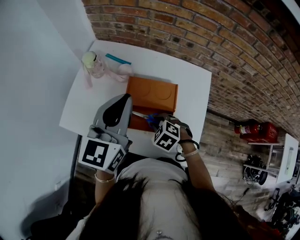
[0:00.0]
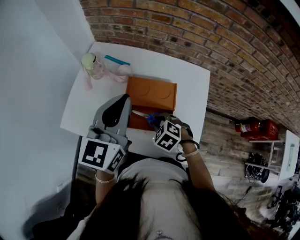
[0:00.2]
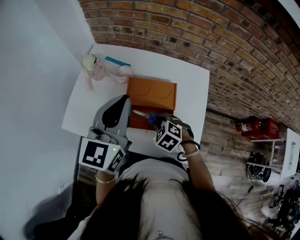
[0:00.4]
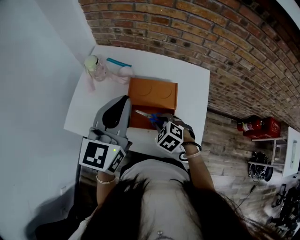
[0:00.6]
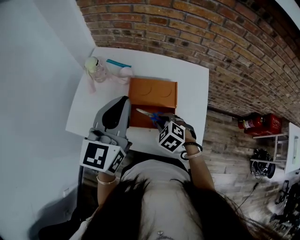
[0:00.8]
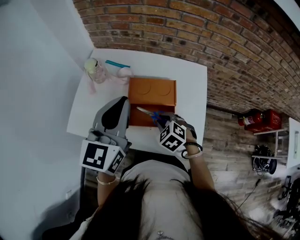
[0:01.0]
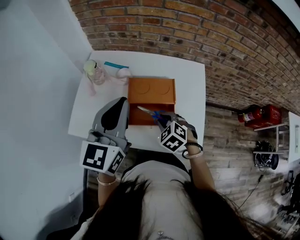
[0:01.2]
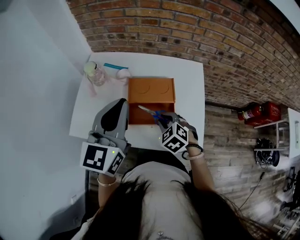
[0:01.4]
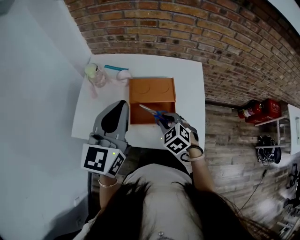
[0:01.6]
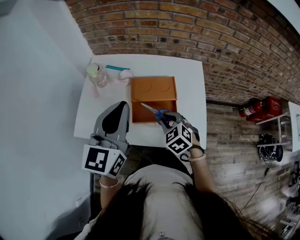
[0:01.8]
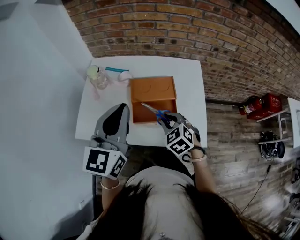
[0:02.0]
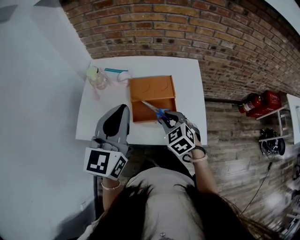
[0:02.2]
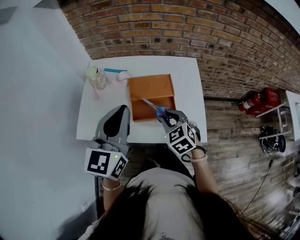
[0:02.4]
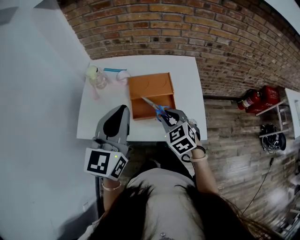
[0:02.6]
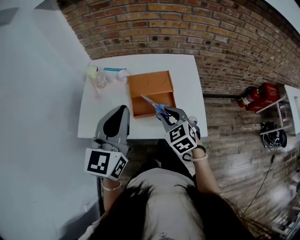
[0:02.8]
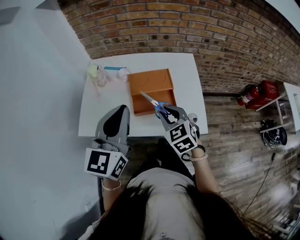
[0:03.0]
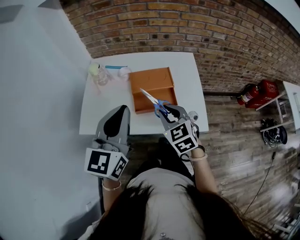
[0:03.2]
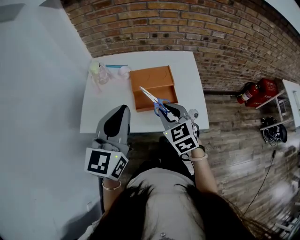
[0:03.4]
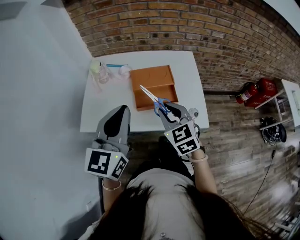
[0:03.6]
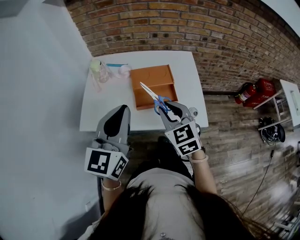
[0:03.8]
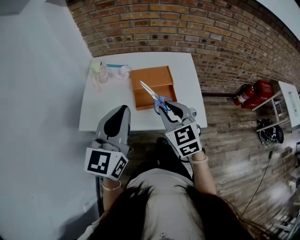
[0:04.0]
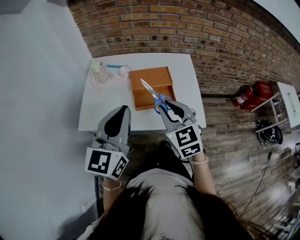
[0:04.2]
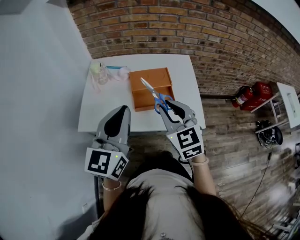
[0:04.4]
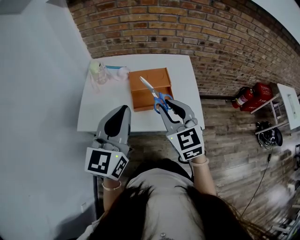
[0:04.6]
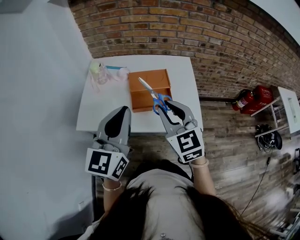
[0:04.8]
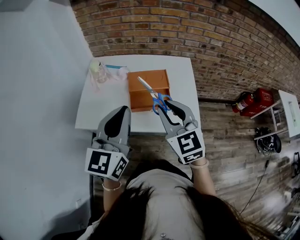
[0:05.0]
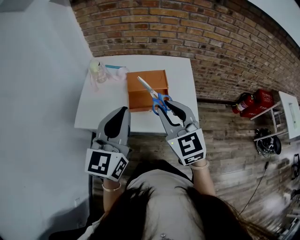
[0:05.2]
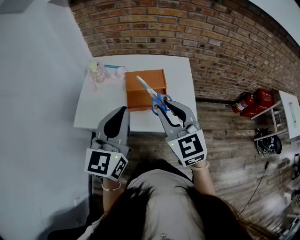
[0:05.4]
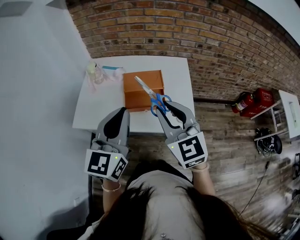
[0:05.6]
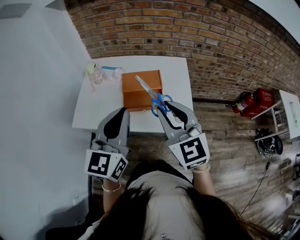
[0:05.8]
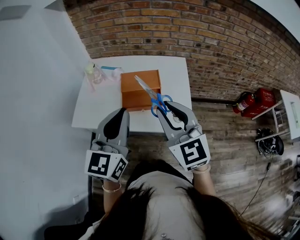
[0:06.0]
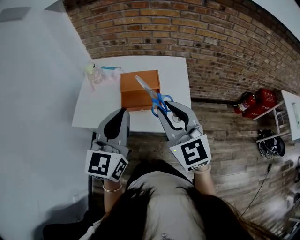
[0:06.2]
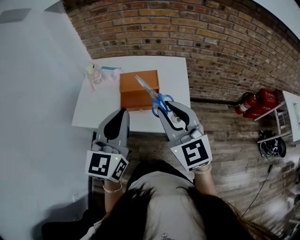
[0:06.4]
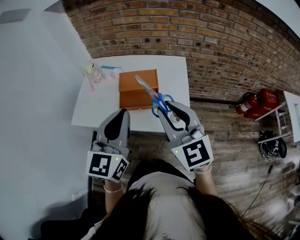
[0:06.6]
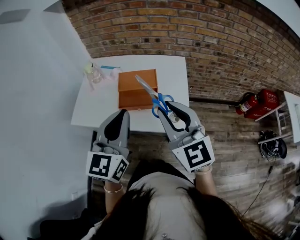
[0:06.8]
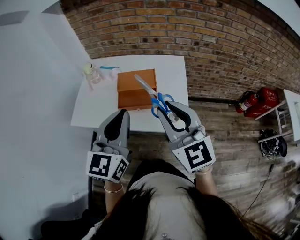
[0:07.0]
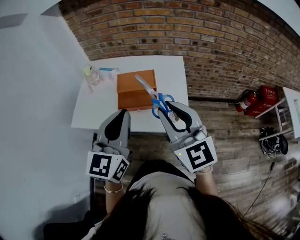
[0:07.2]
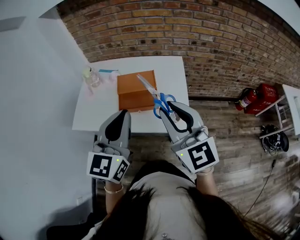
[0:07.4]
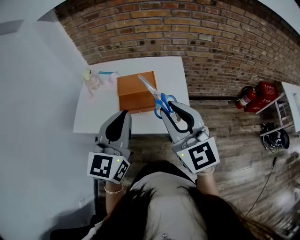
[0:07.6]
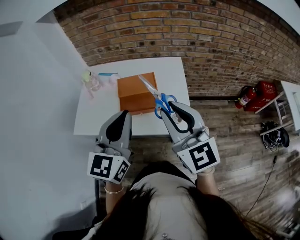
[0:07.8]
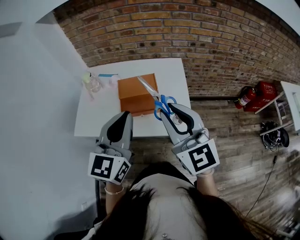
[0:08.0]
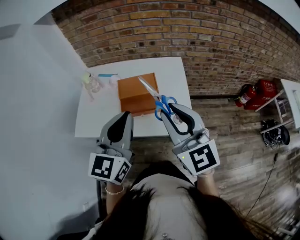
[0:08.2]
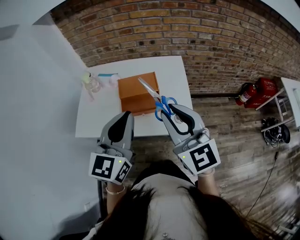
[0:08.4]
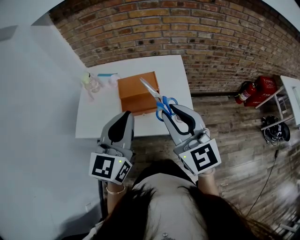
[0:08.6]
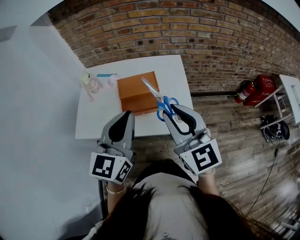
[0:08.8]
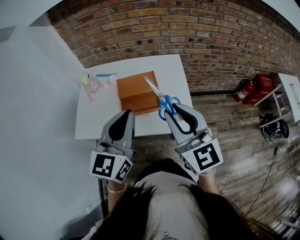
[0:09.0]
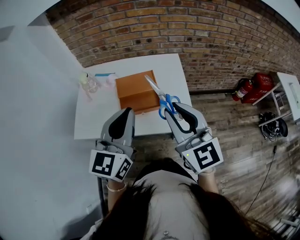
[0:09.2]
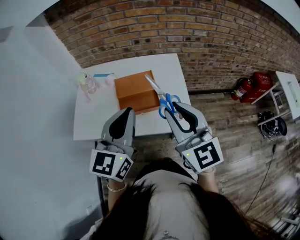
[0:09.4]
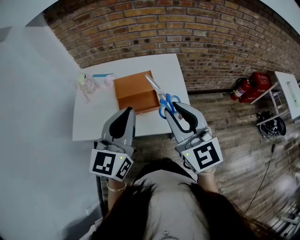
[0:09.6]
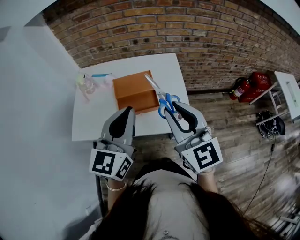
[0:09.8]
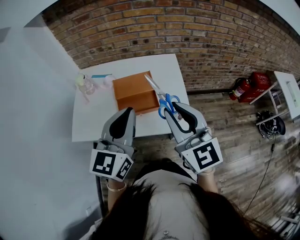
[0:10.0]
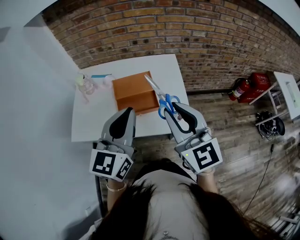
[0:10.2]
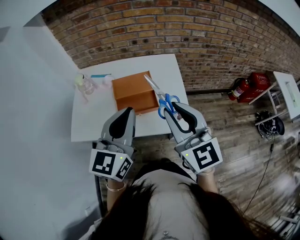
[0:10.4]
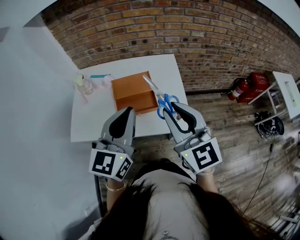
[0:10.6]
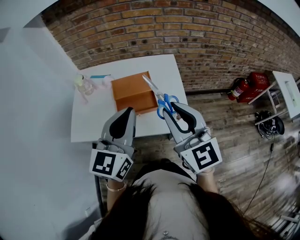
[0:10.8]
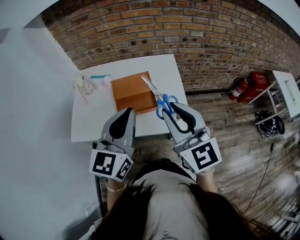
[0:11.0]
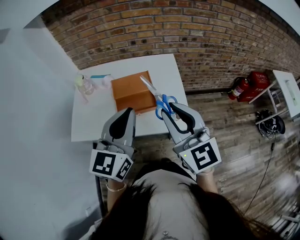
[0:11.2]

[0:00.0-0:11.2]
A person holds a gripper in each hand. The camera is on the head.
0:00.0 to 0:01.6: The right gripper shifts roughly 5 cm upward, and swivels some 20 degrees. The left gripper shifts some 5 cm backward.
0:01.6 to 0:03.2: The right gripper shifts some 10 cm upward and backward, and changes its angle by roughly 30 degrees. Meanwhile the left gripper heads backward, covering roughly 10 cm.
0:03.2 to 0:04.8: The right gripper shifts roughly 10 cm upward.
0:04.8 to 0:06.4: The right gripper heads to the right and upward, covering about 10 cm, while the left gripper goes roughly 10 cm to the right.
0:06.4 to 0:09.6: The grippers make only small movements.
0:09.6 to 0:11.2: The two grippers keep their place.

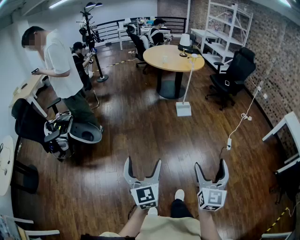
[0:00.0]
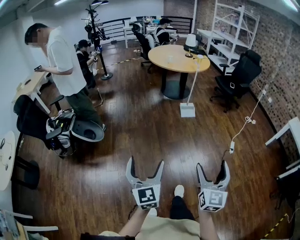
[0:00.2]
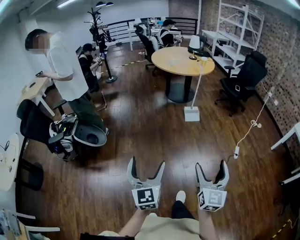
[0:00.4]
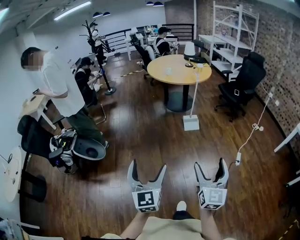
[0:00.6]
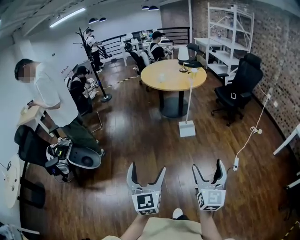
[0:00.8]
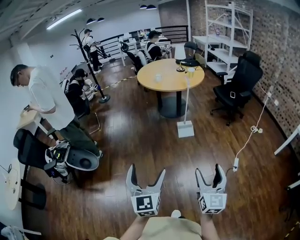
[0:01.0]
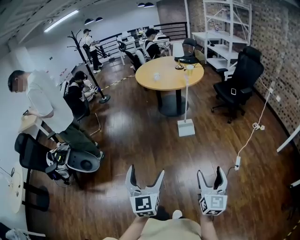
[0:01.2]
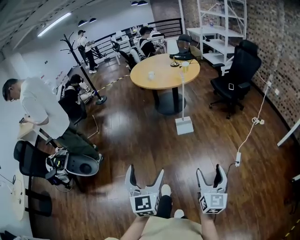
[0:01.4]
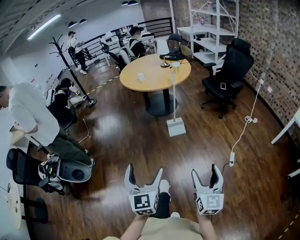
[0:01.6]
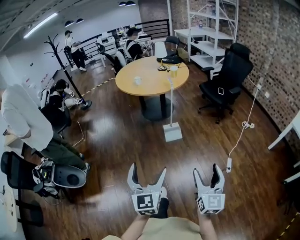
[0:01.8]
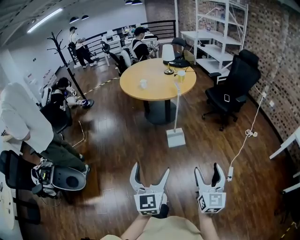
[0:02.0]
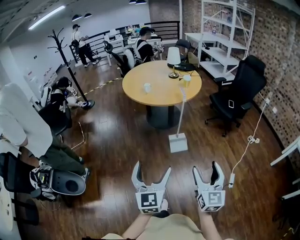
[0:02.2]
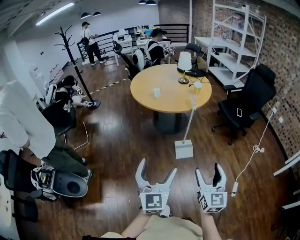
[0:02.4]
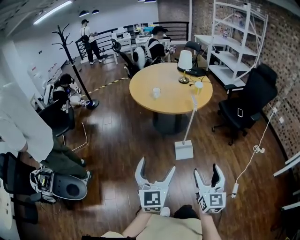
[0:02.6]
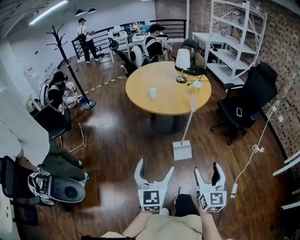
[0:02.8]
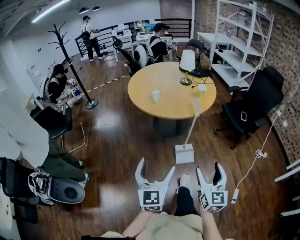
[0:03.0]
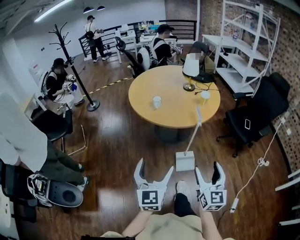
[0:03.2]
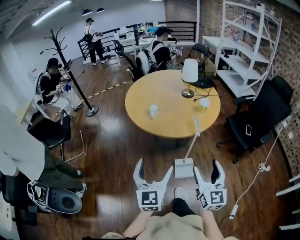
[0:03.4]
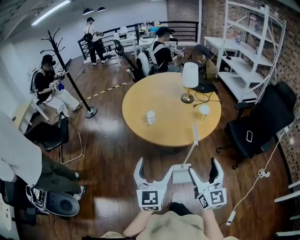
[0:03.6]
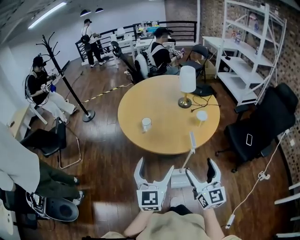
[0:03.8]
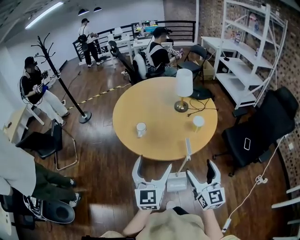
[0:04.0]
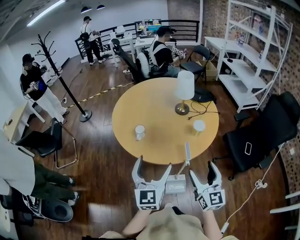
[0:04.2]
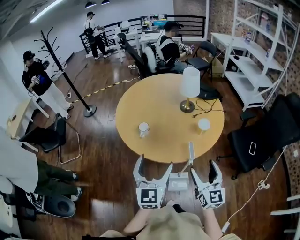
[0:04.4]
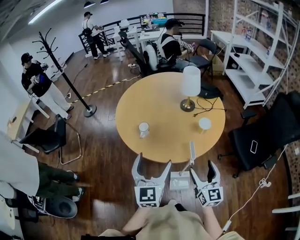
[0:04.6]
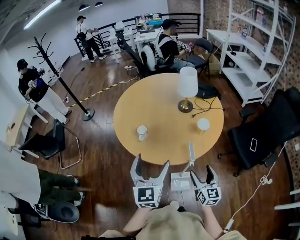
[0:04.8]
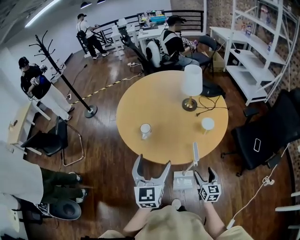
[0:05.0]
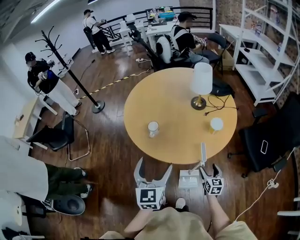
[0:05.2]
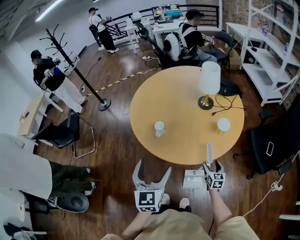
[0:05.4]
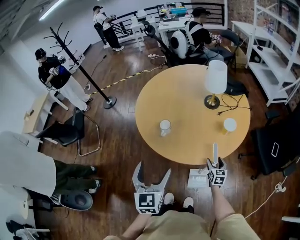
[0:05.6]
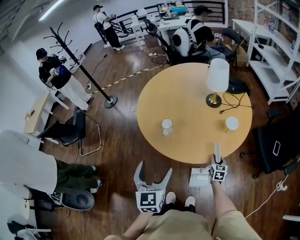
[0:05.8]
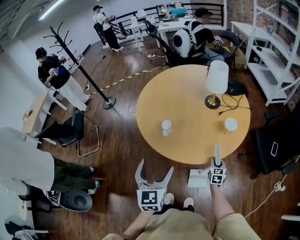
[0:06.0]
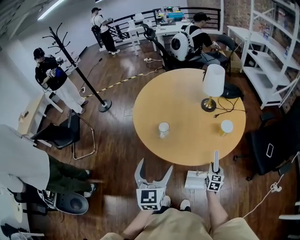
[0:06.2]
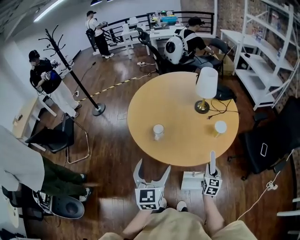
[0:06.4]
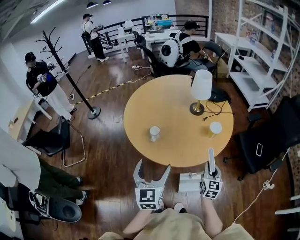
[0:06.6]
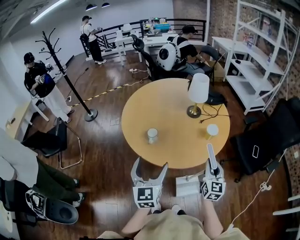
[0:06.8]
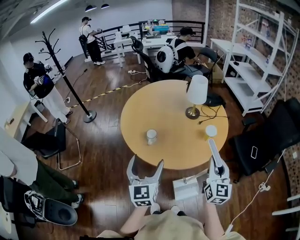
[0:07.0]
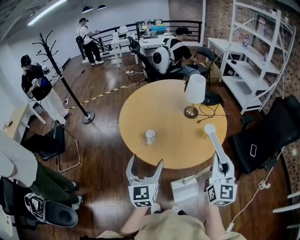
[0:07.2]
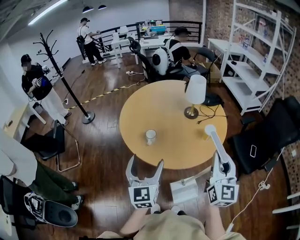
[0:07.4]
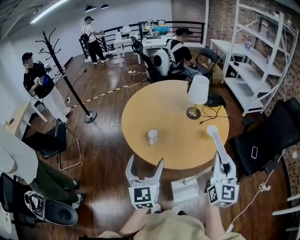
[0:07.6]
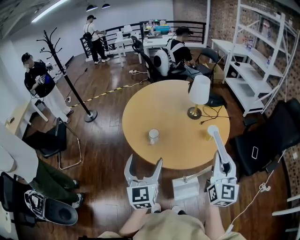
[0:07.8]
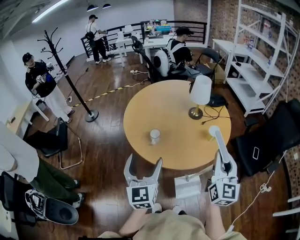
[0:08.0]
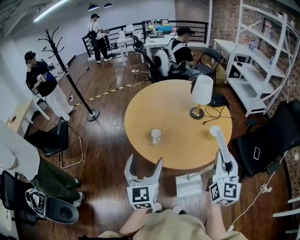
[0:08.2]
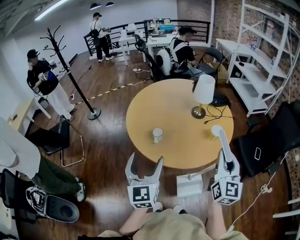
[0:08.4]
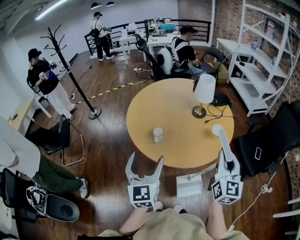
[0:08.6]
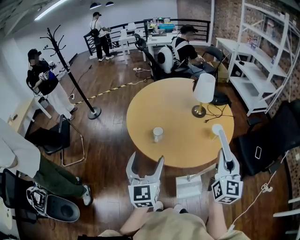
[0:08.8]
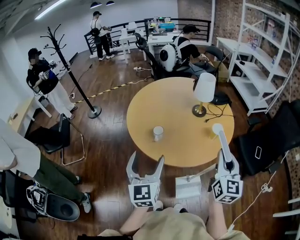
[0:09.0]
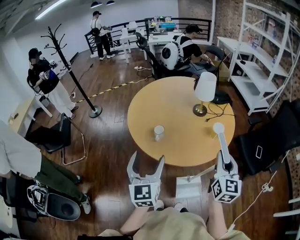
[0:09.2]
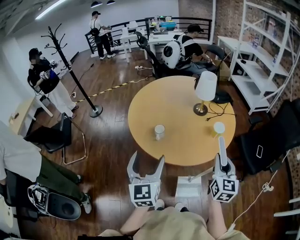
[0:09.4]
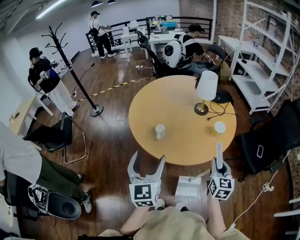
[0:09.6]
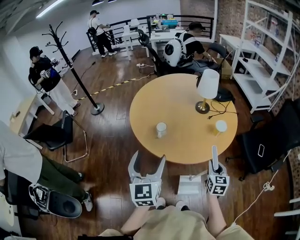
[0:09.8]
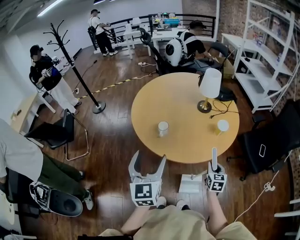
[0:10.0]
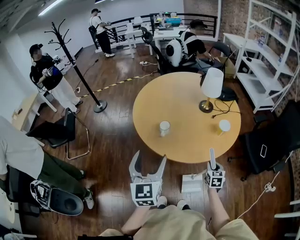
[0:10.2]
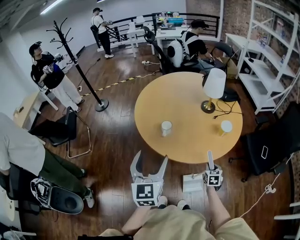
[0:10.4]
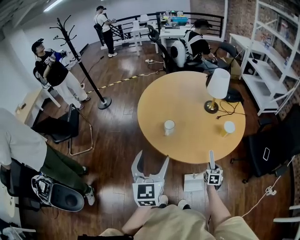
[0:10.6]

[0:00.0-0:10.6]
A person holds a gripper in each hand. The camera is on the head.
0:00.0 to 0:01.6: Both grippers travel together forward and to the right, about 40 cm.
0:01.6 to 0:03.0: The pair of grippers is taken forward, roughly 40 cm.
0:03.0 to 0:04.6: Both grippers are carried forward, approximately 40 cm.
0:04.6 to 0:06.0: The left gripper shifts about 10 cm to the left; the right gripper heads downward and forward, covering roughly 30 cm, points its fingers approximately 30 degrees further downward, and closes.
0:06.0 to 0:07.6: The left gripper is displaced upward by about 5 cm. Meanwhile the right gripper shifts about 40 cm upward, and tilts its fingers approximately 40 degrees upward.
0:07.6 to 0:09.0: The grippers move only a little.
0:09.0 to 0:10.6: The right gripper heads downward, covering roughly 35 cm, and points its fingers approximately 40 degrees further downward.

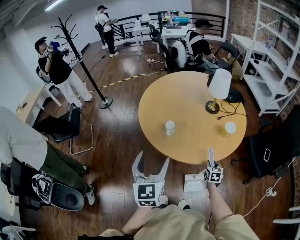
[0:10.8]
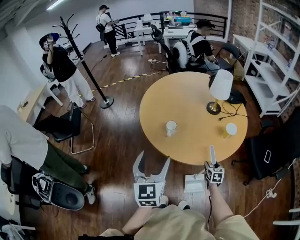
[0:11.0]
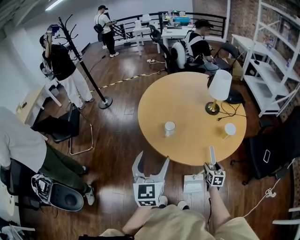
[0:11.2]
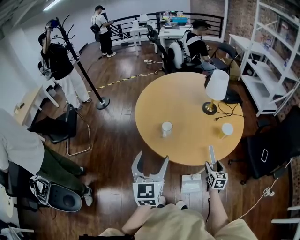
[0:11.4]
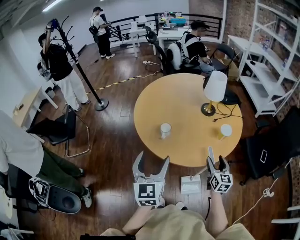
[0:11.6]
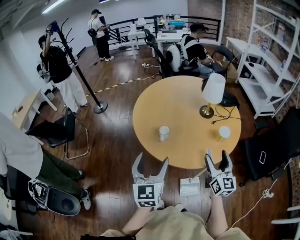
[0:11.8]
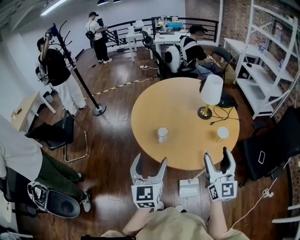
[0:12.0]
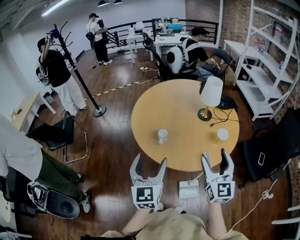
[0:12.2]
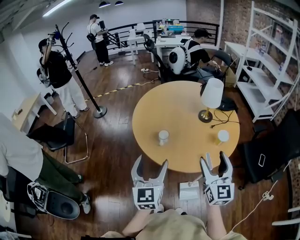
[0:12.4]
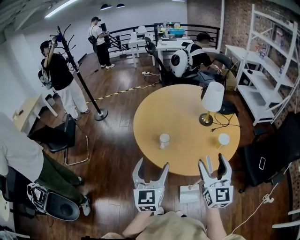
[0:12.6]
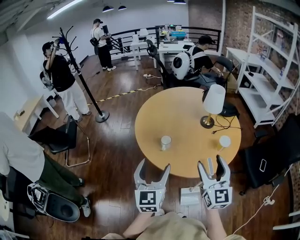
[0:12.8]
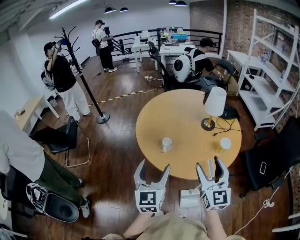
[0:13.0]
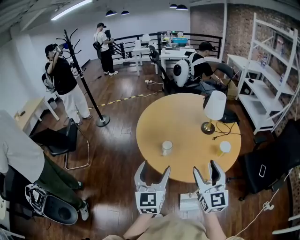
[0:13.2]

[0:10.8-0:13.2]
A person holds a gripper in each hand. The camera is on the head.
0:10.8 to 0:12.0: The right gripper moves upward, approximately 40 cm, angles its fingers upward, by some 50 degrees, and opens up.
0:12.0 to 0:13.2: The right gripper shifts roughly 10 cm to the left.
